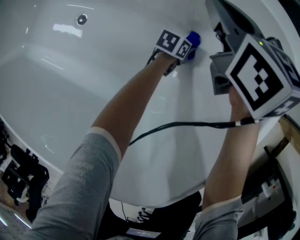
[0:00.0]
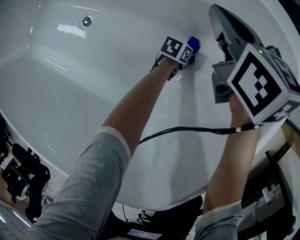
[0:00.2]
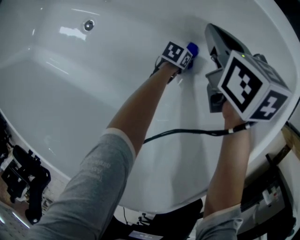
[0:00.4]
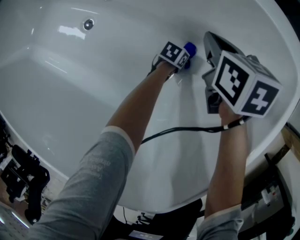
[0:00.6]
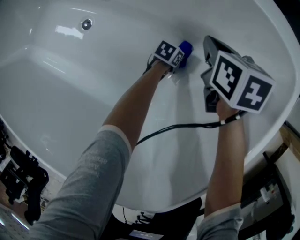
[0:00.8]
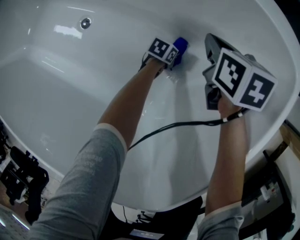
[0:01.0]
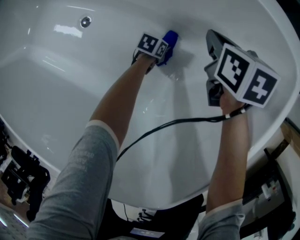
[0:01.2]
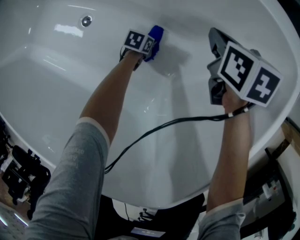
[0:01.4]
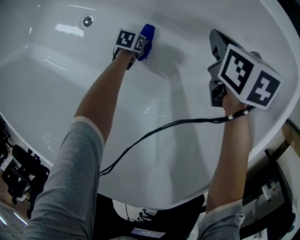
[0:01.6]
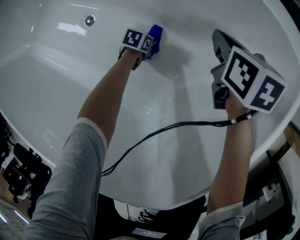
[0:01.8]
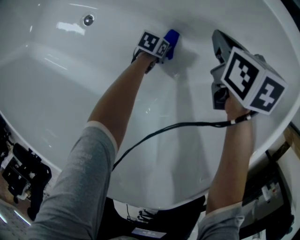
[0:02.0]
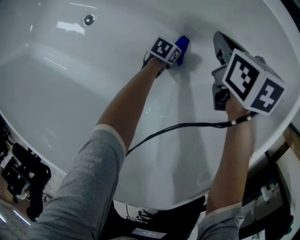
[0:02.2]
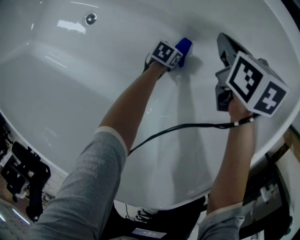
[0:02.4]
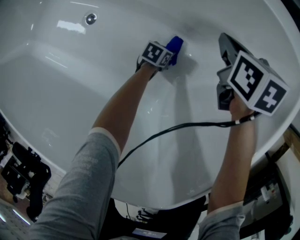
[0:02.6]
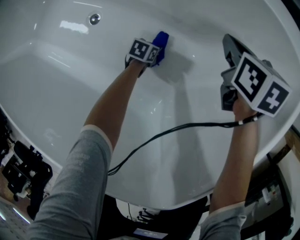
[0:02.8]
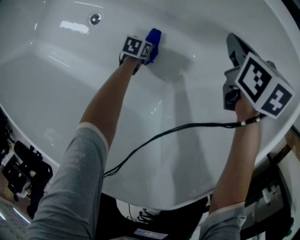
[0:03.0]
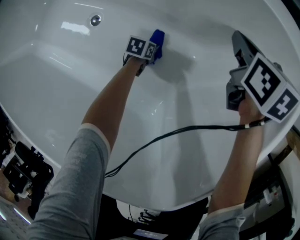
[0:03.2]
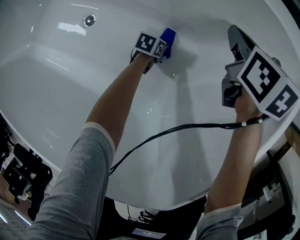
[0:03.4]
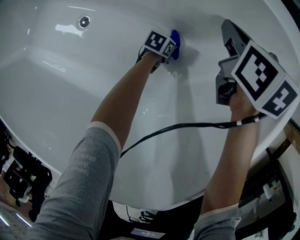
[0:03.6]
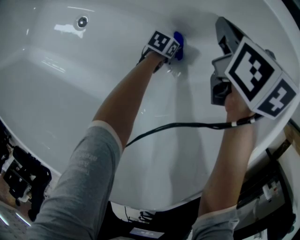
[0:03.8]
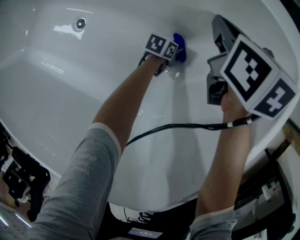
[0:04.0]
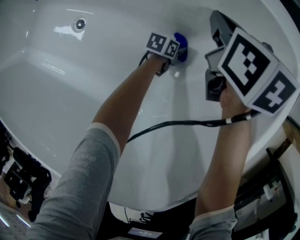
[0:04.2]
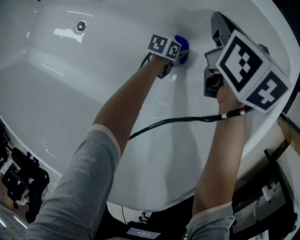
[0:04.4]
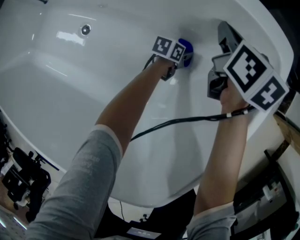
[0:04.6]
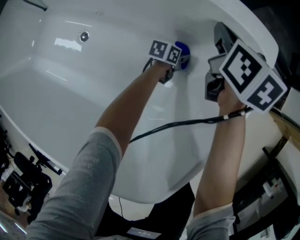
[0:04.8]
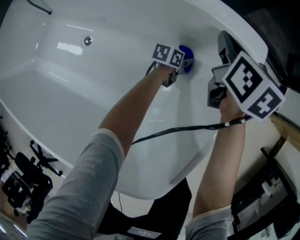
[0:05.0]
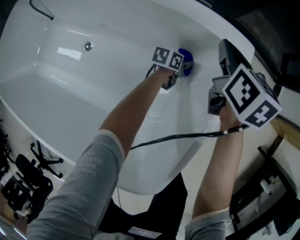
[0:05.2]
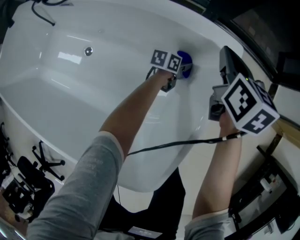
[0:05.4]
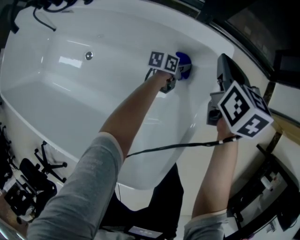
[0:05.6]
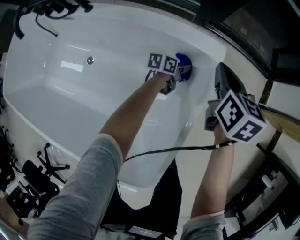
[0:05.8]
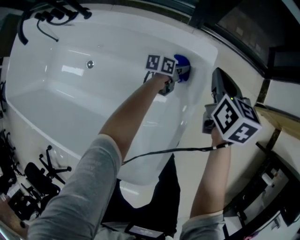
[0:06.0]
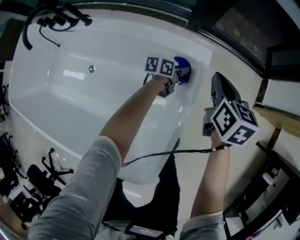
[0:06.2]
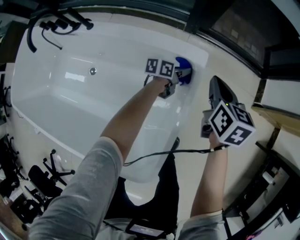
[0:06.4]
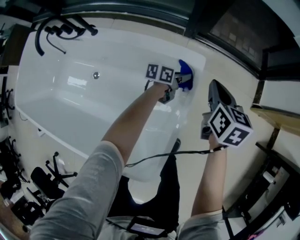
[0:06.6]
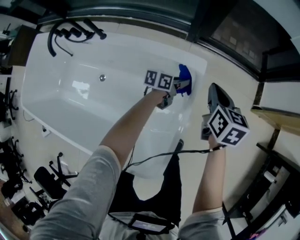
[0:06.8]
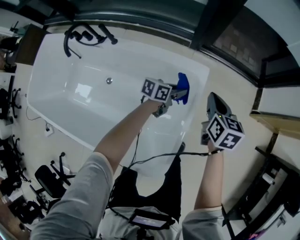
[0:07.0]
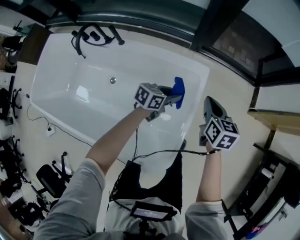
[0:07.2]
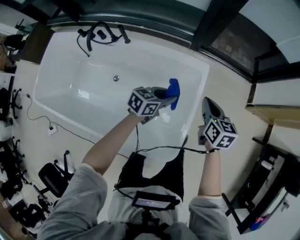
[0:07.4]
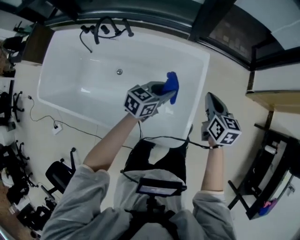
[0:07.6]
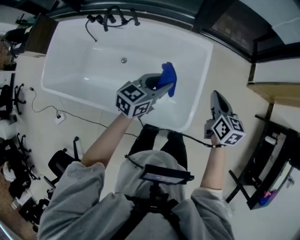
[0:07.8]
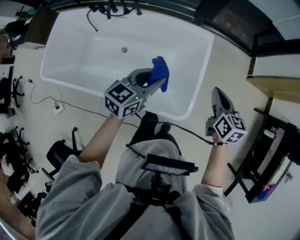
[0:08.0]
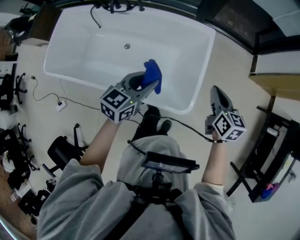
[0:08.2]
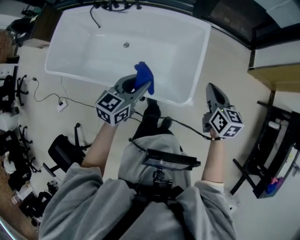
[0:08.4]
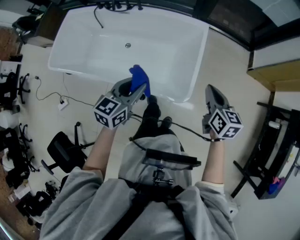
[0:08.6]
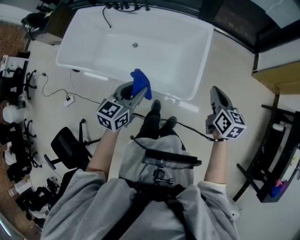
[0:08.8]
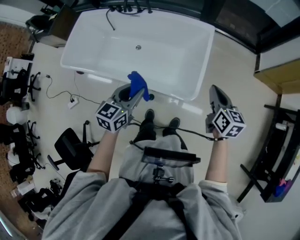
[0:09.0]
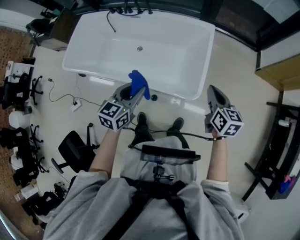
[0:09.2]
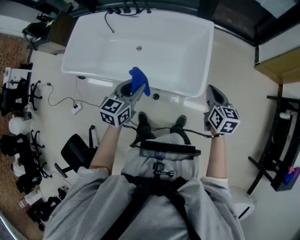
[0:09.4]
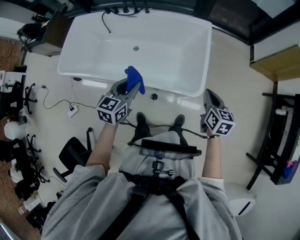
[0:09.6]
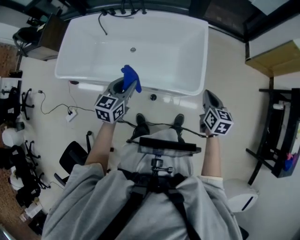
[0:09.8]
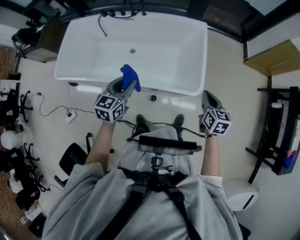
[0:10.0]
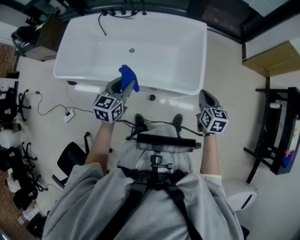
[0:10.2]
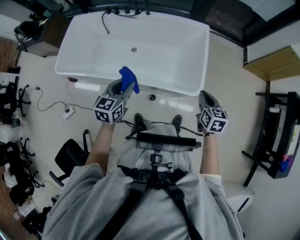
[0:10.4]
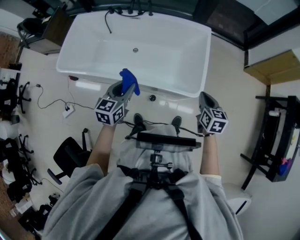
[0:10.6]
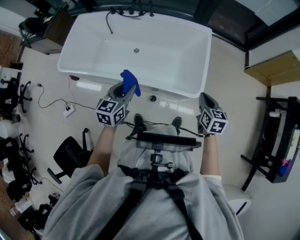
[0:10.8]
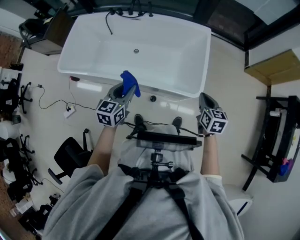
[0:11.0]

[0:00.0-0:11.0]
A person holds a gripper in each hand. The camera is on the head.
0:00.0 to 0:01.6: The right gripper goes some 10 cm downward, and rotates roughly 20 degrees; the left gripper moves to the left, roughly 20 cm, and changes its angle by about 20 degrees.
0:01.6 to 0:03.2: The left gripper goes to the right and returns, some 15 cm each way.
0:03.2 to 0:04.8: The left gripper shifts roughly 25 cm to the right, forward and upward, and rotates some 30 degrees. The right gripper travels upward by roughly 10 cm.
0:04.8 to 0:06.2: The right gripper is displaced to the right and upward by some 20 cm. The left gripper heads upward, covering some 25 cm.
0:06.2 to 0:07.8: The left gripper shifts about 60 cm upward and backward, and rotates roughly 40 degrees, while the right gripper moves backward and upward, roughly 35 cm.
0:07.8 to 0:09.4: Both grippers travel together backward, some 25 cm. The left gripper rotates approximately 20 degrees.
0:09.4 to 0:11.0: The right gripper travels backward and to the left by approximately 10 cm; the left gripper goes approximately 10 cm to the left.

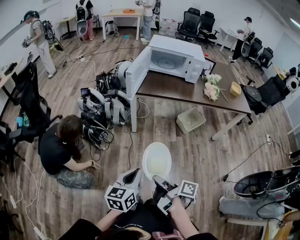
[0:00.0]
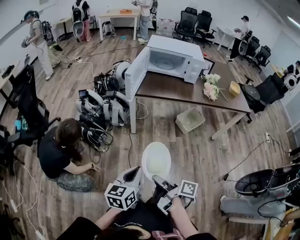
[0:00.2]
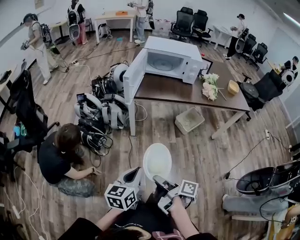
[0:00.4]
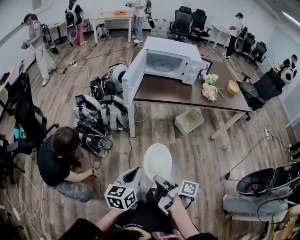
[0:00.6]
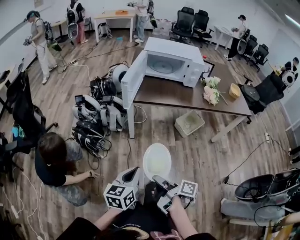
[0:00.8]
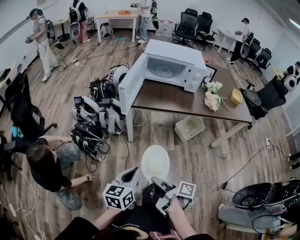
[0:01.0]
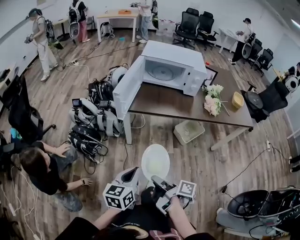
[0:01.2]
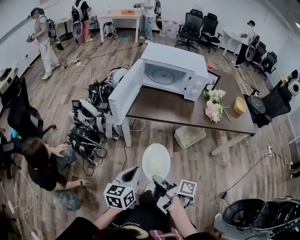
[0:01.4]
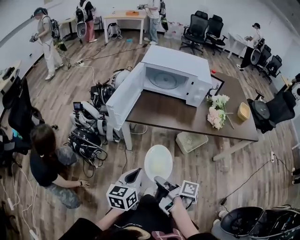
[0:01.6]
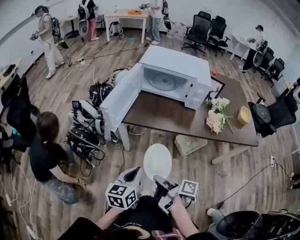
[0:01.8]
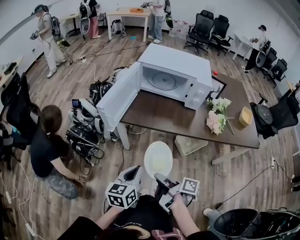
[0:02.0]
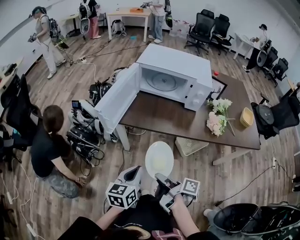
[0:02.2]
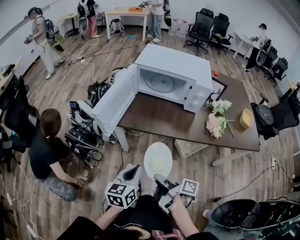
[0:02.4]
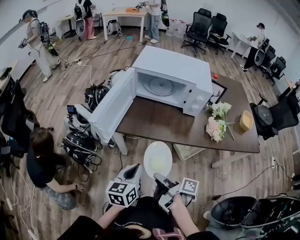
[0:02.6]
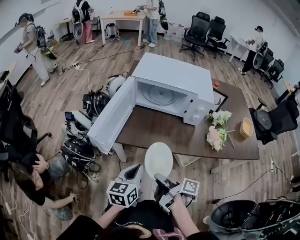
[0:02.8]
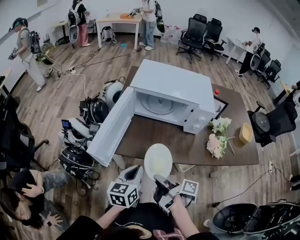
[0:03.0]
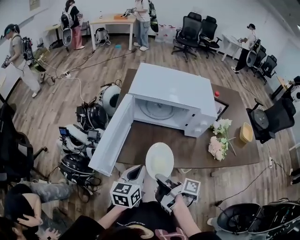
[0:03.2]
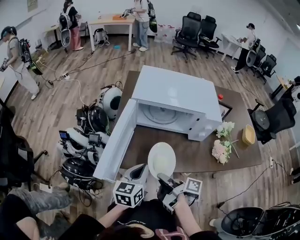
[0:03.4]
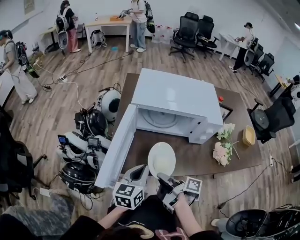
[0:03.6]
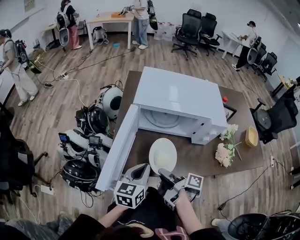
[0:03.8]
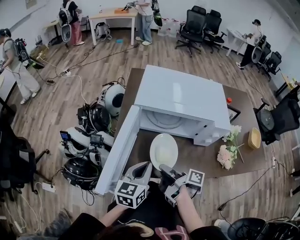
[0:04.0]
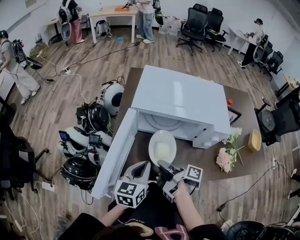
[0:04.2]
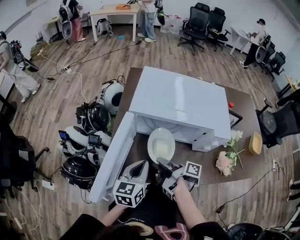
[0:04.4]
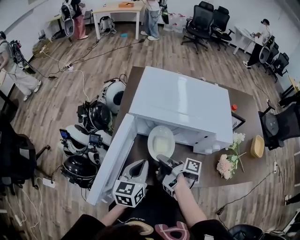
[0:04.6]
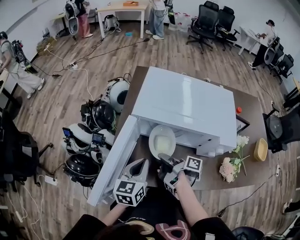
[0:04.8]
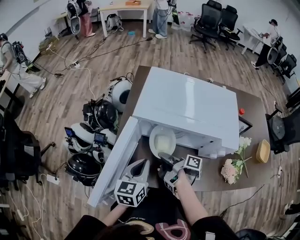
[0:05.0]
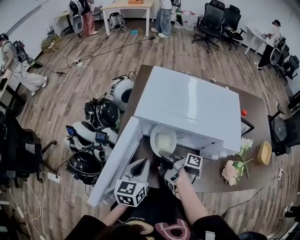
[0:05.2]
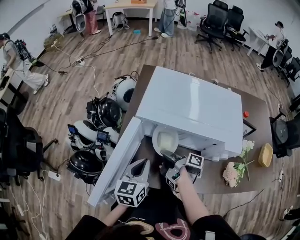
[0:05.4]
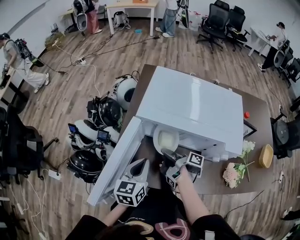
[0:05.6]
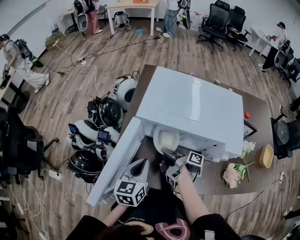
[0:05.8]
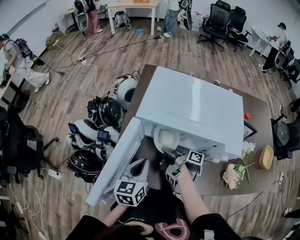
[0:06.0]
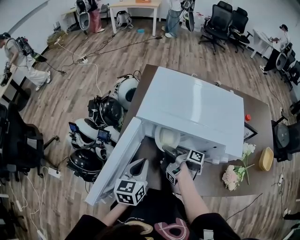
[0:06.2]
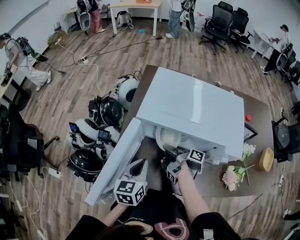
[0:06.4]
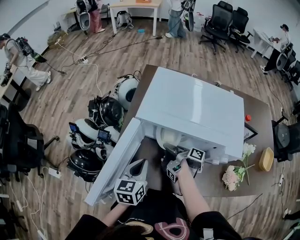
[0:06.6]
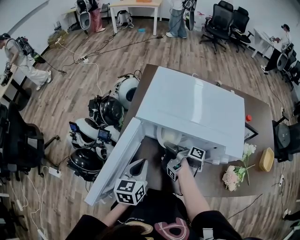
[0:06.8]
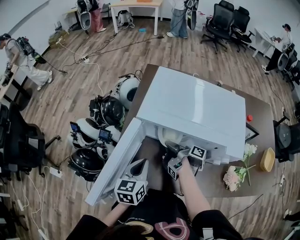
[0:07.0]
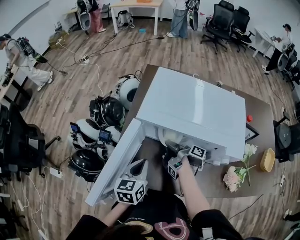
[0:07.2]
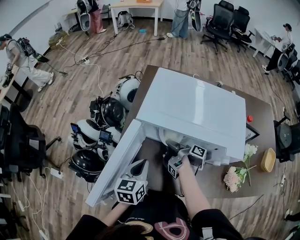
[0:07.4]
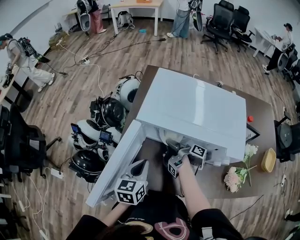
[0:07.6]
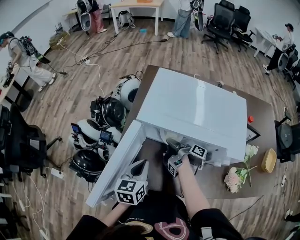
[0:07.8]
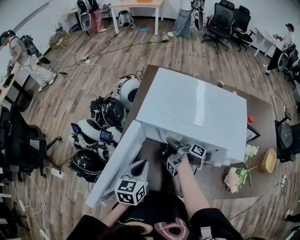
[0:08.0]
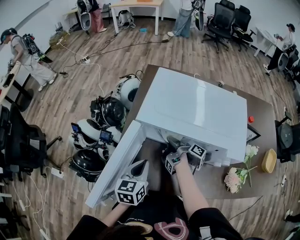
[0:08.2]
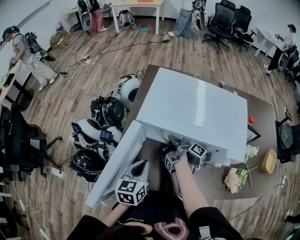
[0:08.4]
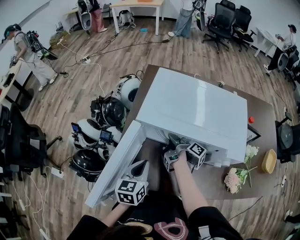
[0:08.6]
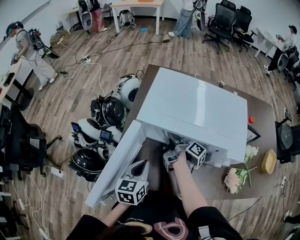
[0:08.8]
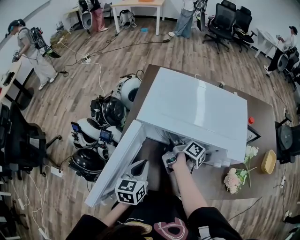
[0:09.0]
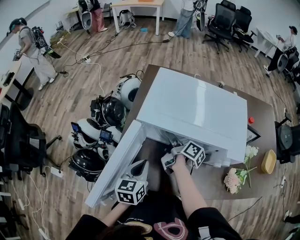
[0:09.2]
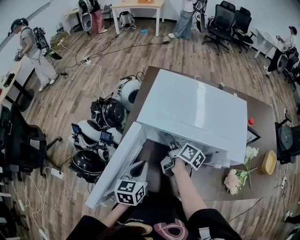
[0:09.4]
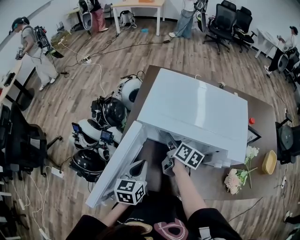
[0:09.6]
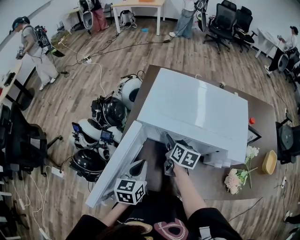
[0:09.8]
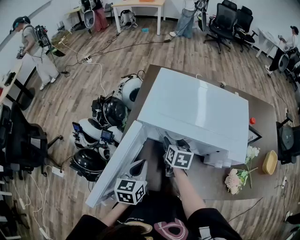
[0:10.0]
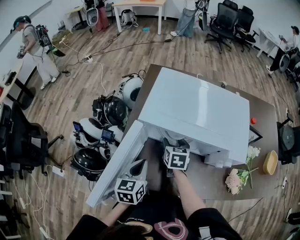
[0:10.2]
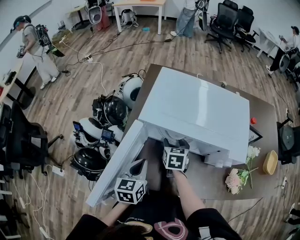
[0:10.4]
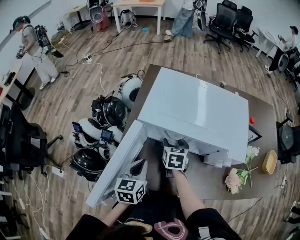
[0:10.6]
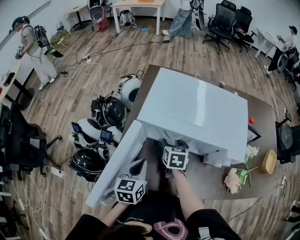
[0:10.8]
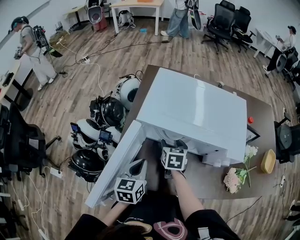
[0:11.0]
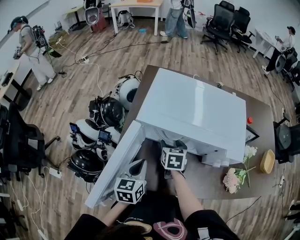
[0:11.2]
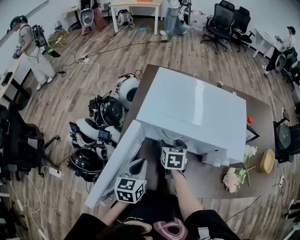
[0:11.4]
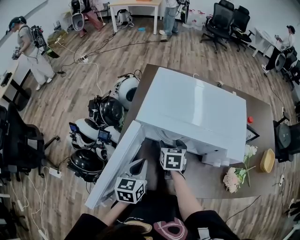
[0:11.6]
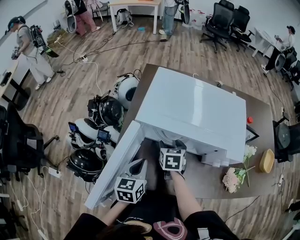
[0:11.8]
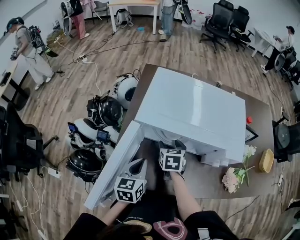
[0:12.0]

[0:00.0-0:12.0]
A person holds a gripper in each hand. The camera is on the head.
0:00.0 to 0:01.6: The left gripper shifts by approximately 25 cm.
0:01.6 to 0:03.0: The left gripper changes place by about 25 cm.
0:03.0 to 0:04.4: The left gripper ends up about 15 cm from where it was.

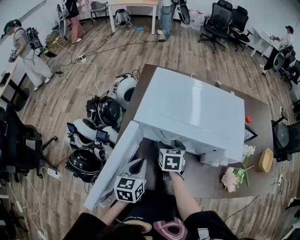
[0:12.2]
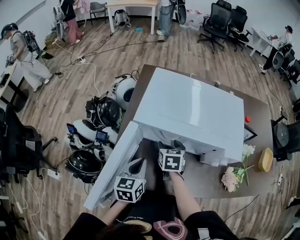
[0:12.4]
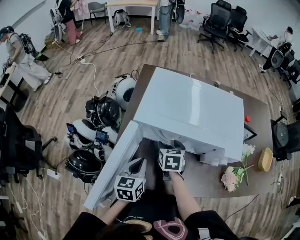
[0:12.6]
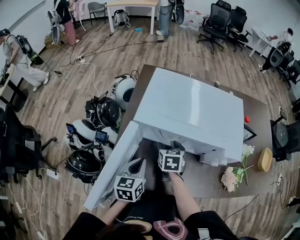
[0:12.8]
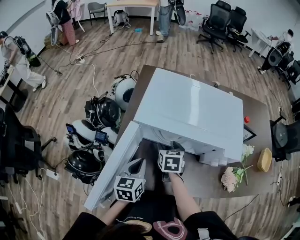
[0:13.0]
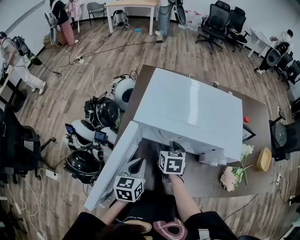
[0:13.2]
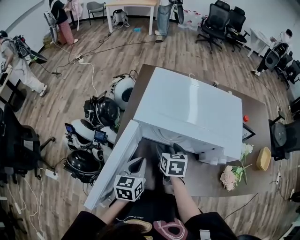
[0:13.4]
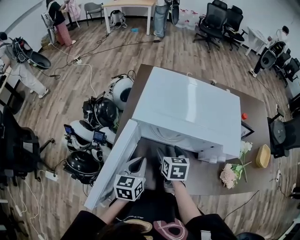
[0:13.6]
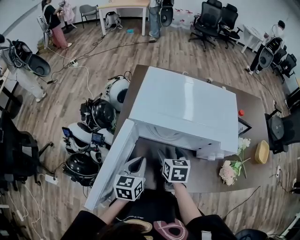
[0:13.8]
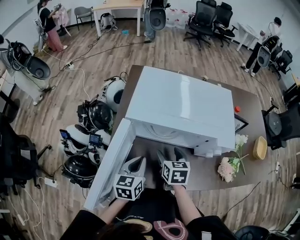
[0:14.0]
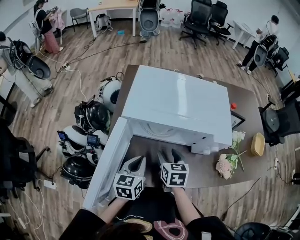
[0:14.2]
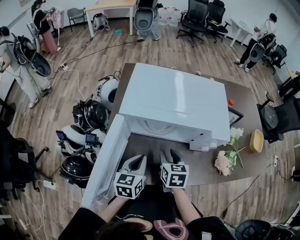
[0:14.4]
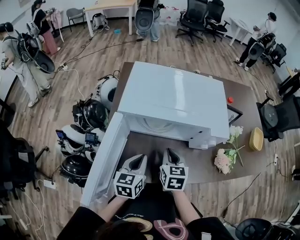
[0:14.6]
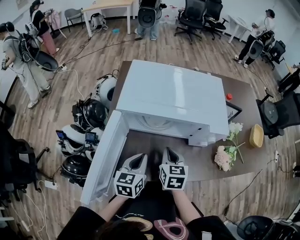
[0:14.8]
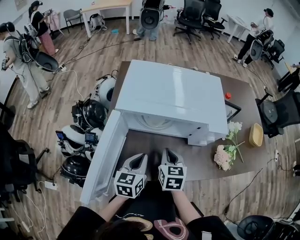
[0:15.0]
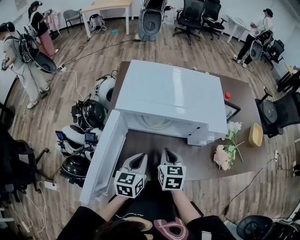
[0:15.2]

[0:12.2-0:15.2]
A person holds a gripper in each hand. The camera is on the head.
0:13.8 to 0:15.2: The left gripper moves some 5 cm.
